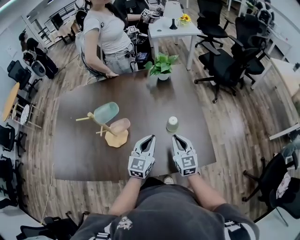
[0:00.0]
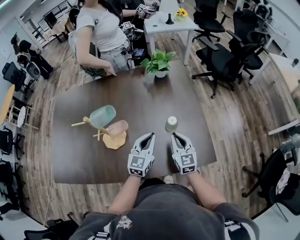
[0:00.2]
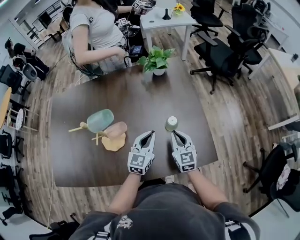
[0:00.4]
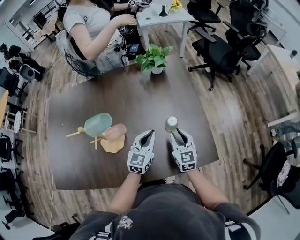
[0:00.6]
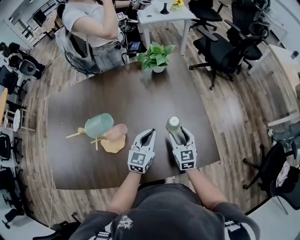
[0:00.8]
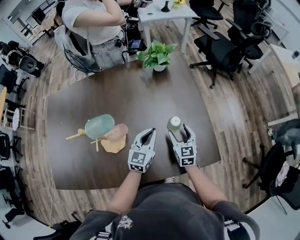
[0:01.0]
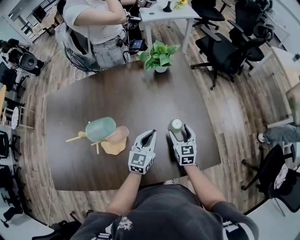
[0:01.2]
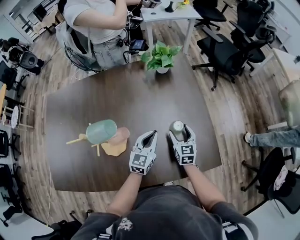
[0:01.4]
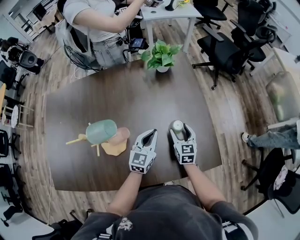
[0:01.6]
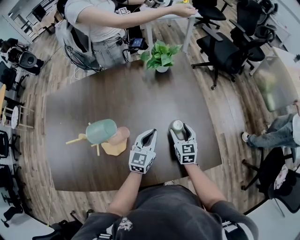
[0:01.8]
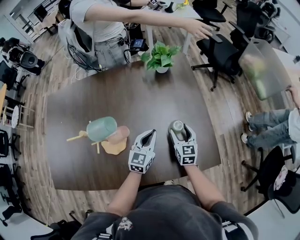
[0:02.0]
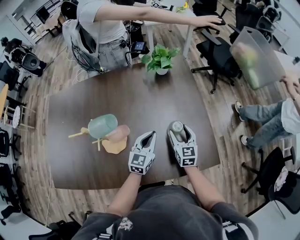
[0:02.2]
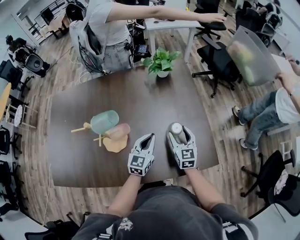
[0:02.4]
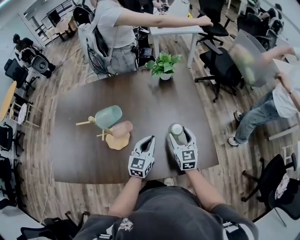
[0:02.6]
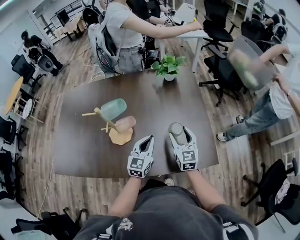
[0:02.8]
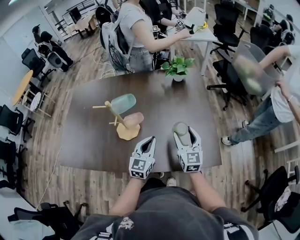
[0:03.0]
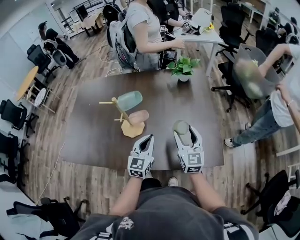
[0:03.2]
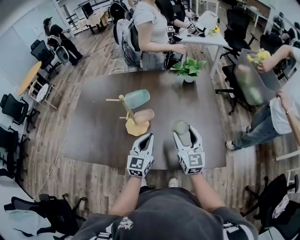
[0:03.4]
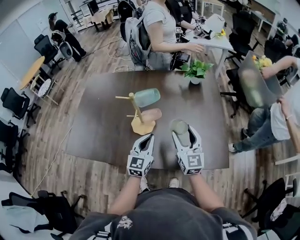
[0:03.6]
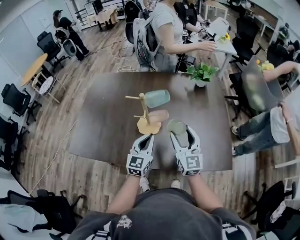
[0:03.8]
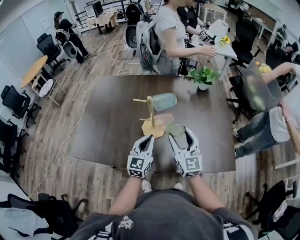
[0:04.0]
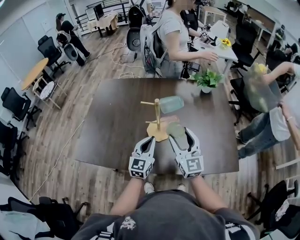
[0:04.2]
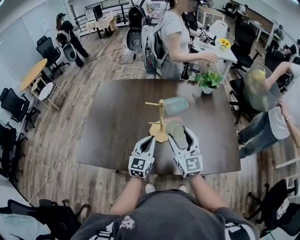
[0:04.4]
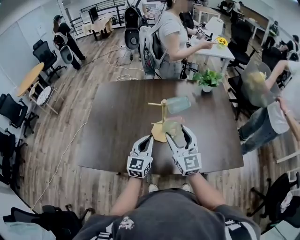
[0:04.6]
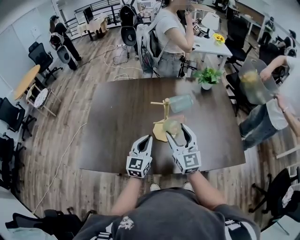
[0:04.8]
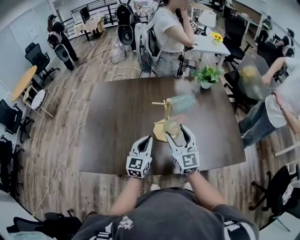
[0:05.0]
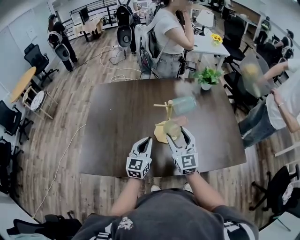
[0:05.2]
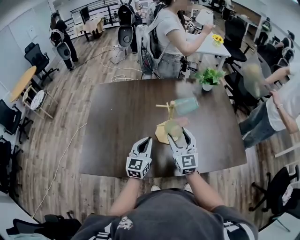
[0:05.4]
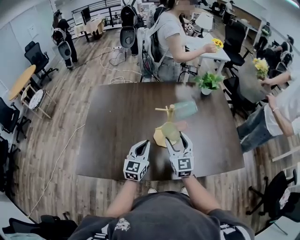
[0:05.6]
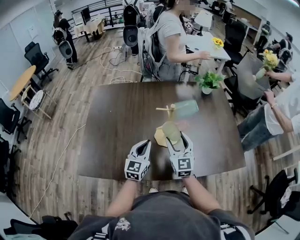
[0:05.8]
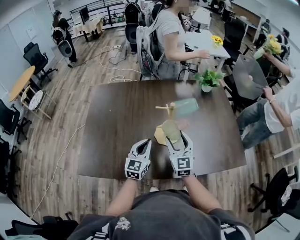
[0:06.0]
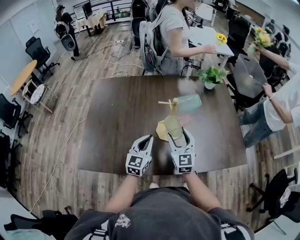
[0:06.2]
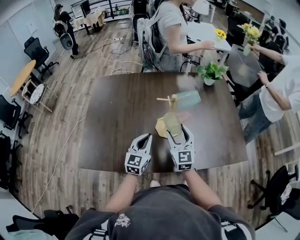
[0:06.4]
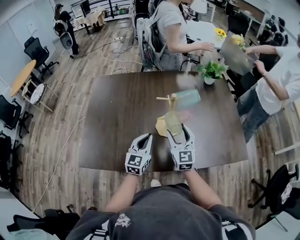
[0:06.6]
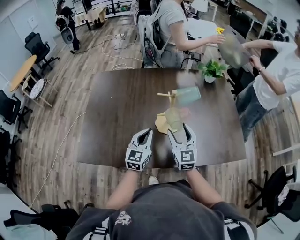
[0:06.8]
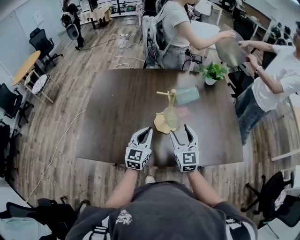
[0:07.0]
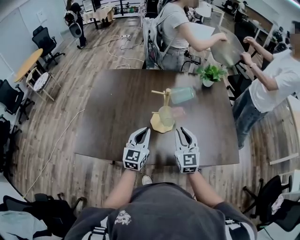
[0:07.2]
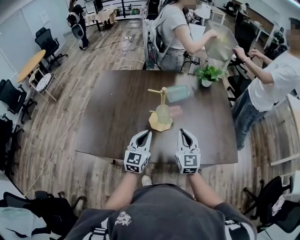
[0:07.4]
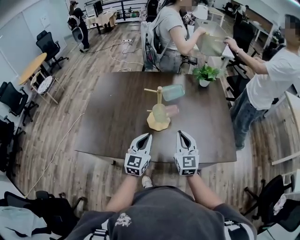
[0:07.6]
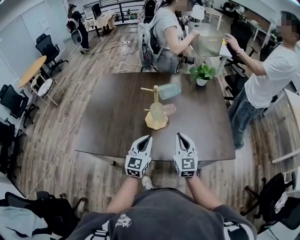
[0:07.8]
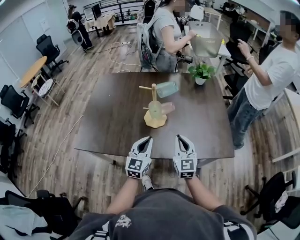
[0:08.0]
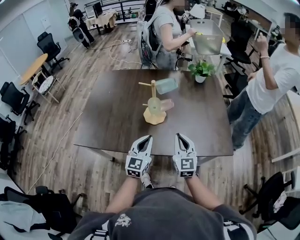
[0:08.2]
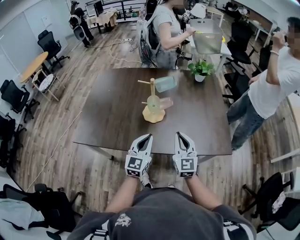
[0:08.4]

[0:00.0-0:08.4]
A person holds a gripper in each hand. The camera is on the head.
0.0 to 1.4 s: Both grippers travel together forward and downward, approximately 15 cm. The right gripper opens.
1.4 to 2.8 s: The left gripper shifts approximately 10 cm backward. Meanwhile the right gripper goes roughly 15 cm upward and backward.
2.8 to 4.2 s: The right gripper moves to the left and upward, some 30 cm, and changes its angle by about 20 degrees. Meanwhile the left gripper travels to the left by approximately 25 cm.
4.2 to 5.6 s: The left gripper travels to the left by roughly 10 cm, while the right gripper shifts roughly 10 cm to the left and downward.
5.6 to 7.0 s: The right gripper moves about 5 cm.
7.0 to 8.4 s: The grippers both shift backward and to the right by approximately 15 cm. The right gripper closes its fingers.

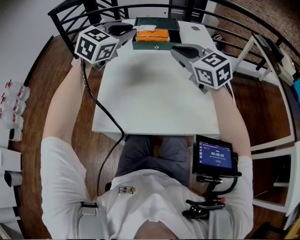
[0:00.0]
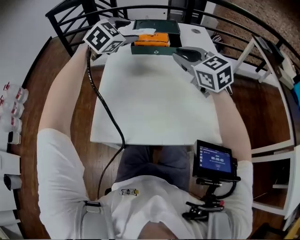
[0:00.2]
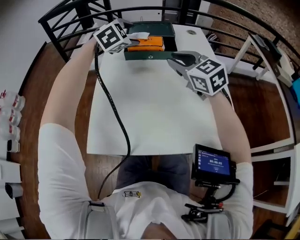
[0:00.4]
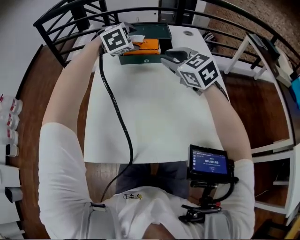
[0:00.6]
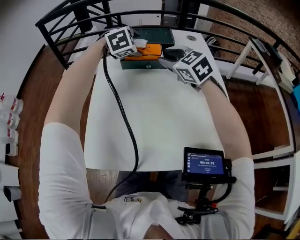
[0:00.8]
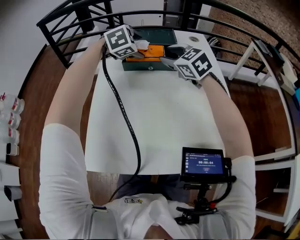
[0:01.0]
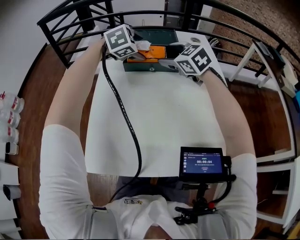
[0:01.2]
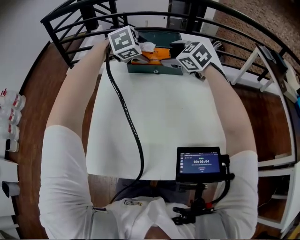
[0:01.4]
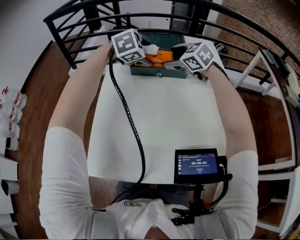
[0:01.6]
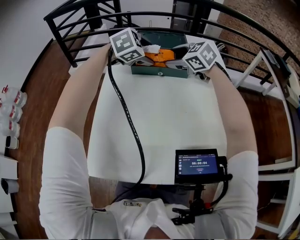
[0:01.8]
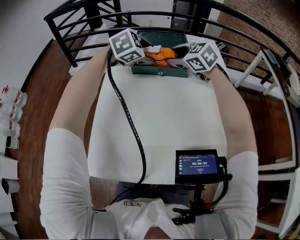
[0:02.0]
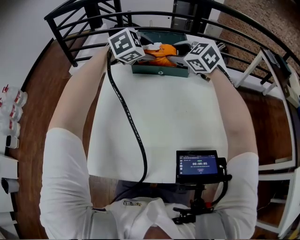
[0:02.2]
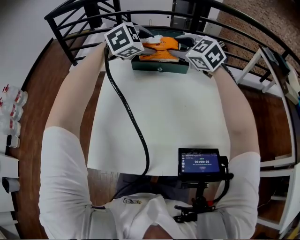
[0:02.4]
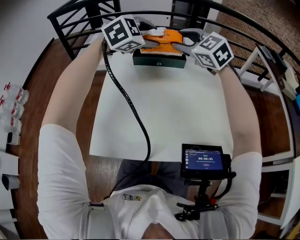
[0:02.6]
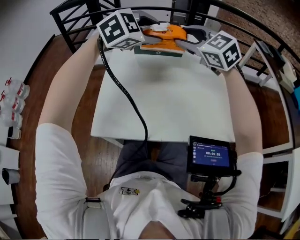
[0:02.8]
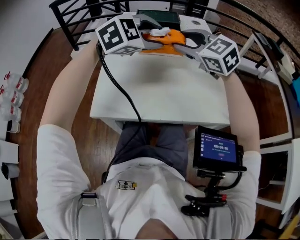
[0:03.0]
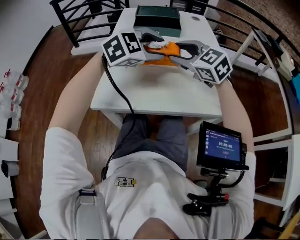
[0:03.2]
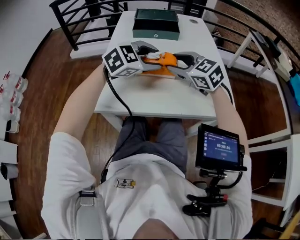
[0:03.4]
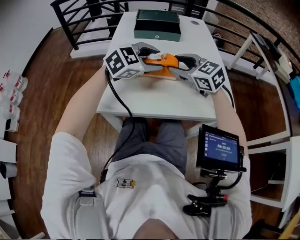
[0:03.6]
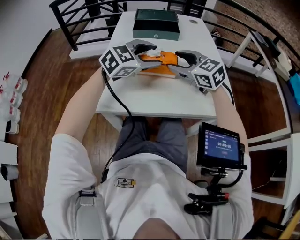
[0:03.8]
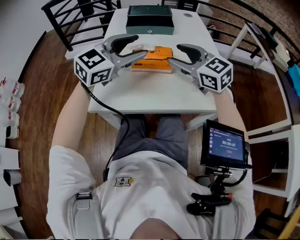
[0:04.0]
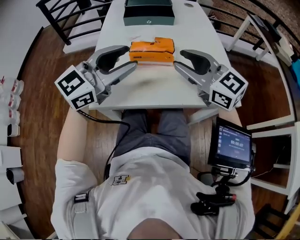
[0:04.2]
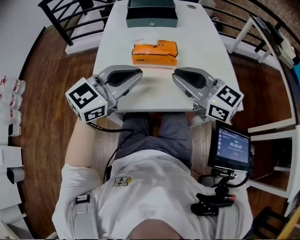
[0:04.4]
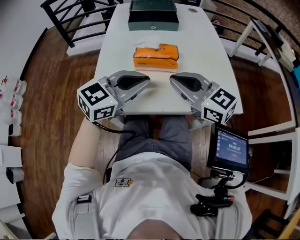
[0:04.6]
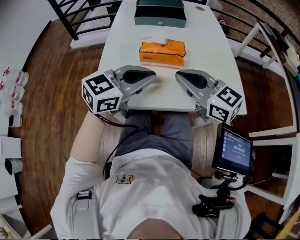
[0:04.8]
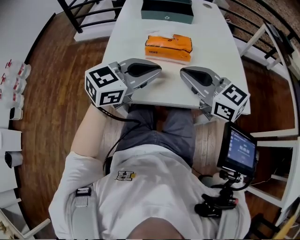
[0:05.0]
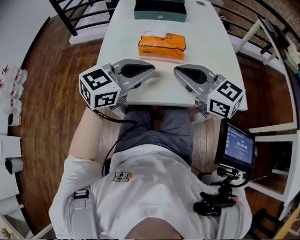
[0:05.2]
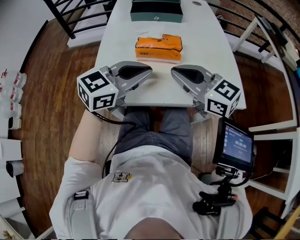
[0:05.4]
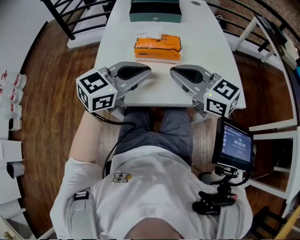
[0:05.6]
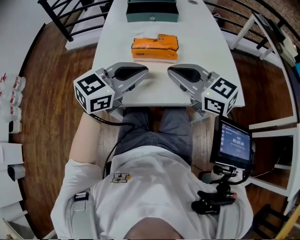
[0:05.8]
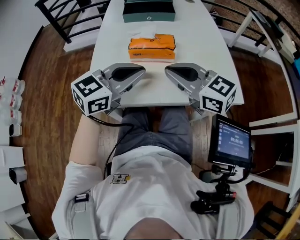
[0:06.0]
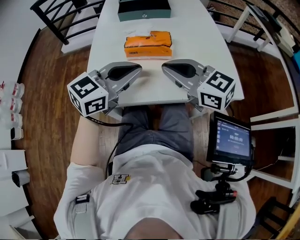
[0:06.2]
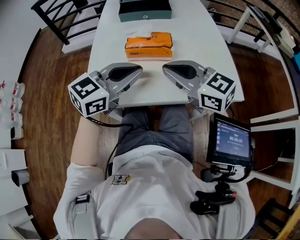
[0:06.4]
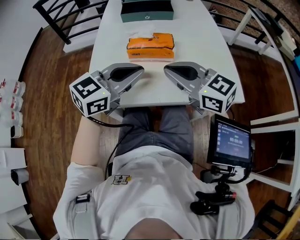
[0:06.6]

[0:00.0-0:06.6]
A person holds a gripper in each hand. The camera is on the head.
0.0 to 1.6 s: Both grippers travel together forward and downward, approximately 20 cm. The left gripper tips its fingers downward by roughly 40 degrees, and opens. Meanwhile the right gripper turns by approximately 20 degrees, and opens its fingers.
1.6 to 3.2 s: The two grippers go roughly 30 cm backward. The left gripper closes its fingers. The right gripper closes.
3.2 to 5.0 s: Both grippers move backward, approximately 10 cm. The left gripper turns by some 40 degrees, and closes up; the right gripper changes its angle by approximately 30 degrees, and closes up.
5.0 to 6.6 s: Neither gripper changes place.

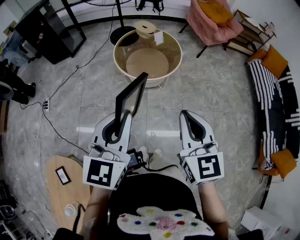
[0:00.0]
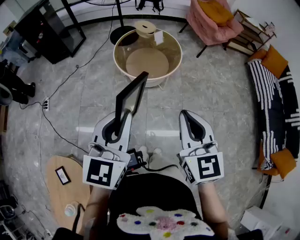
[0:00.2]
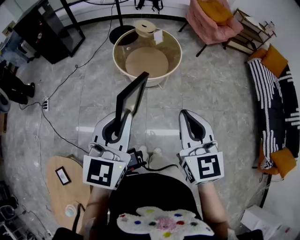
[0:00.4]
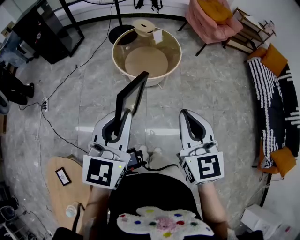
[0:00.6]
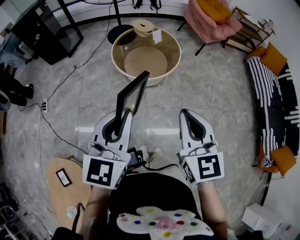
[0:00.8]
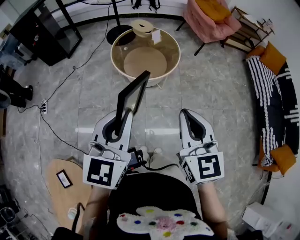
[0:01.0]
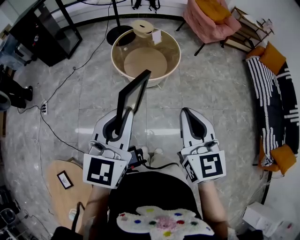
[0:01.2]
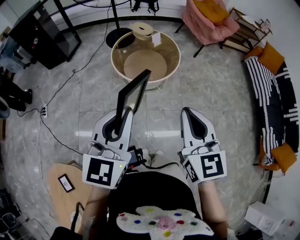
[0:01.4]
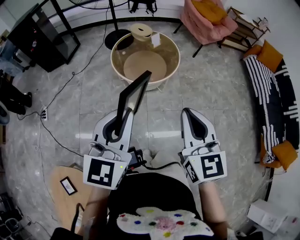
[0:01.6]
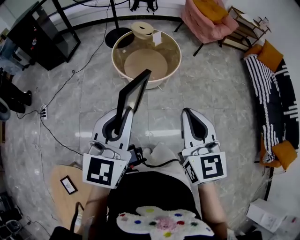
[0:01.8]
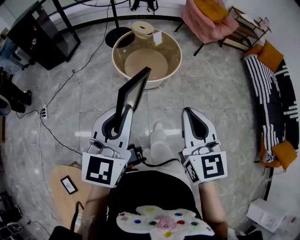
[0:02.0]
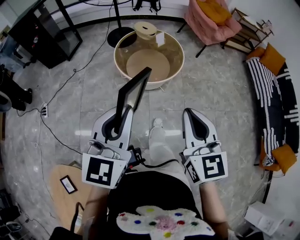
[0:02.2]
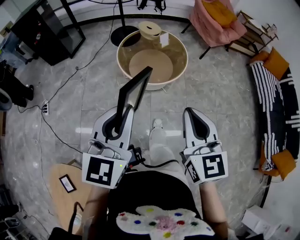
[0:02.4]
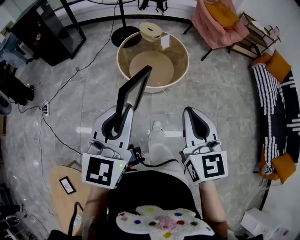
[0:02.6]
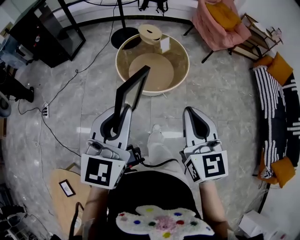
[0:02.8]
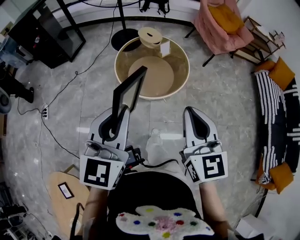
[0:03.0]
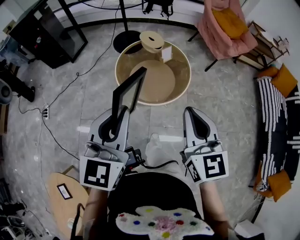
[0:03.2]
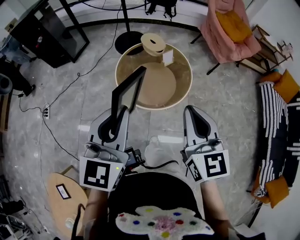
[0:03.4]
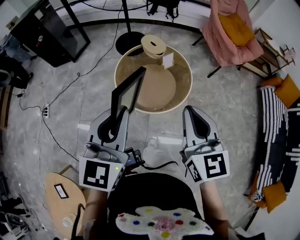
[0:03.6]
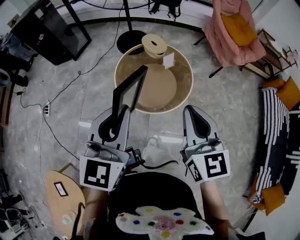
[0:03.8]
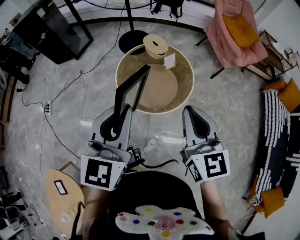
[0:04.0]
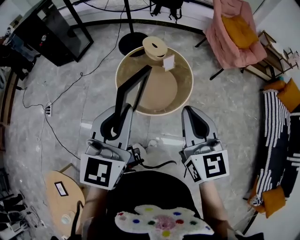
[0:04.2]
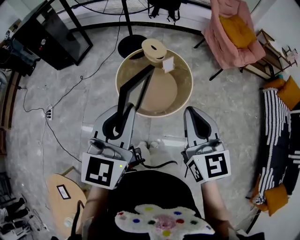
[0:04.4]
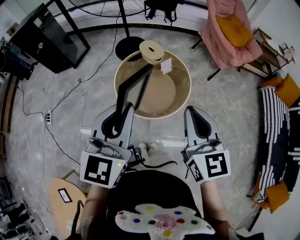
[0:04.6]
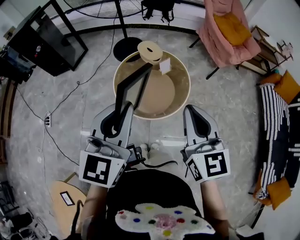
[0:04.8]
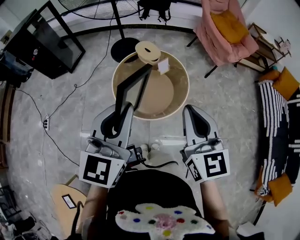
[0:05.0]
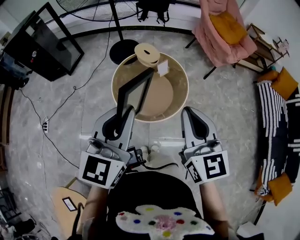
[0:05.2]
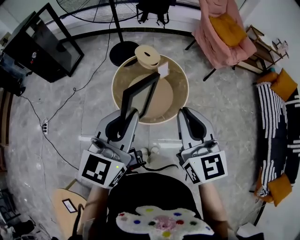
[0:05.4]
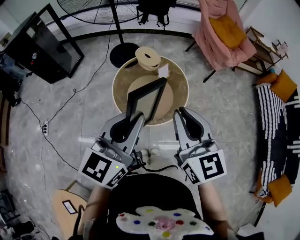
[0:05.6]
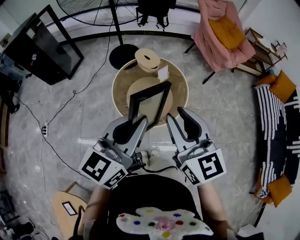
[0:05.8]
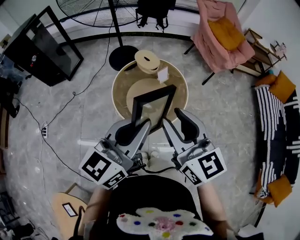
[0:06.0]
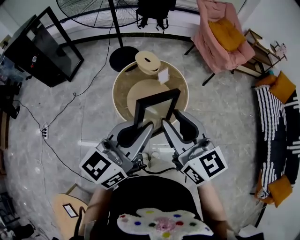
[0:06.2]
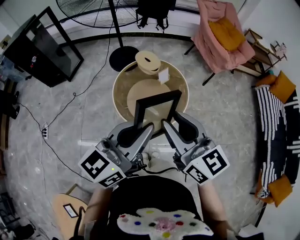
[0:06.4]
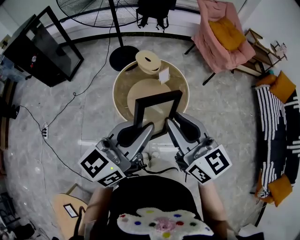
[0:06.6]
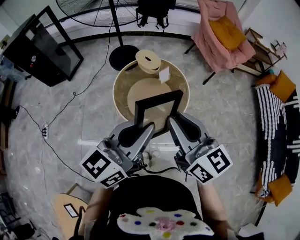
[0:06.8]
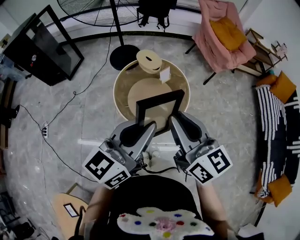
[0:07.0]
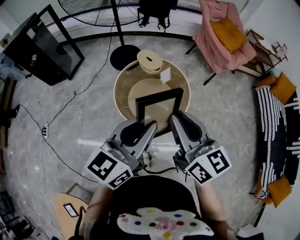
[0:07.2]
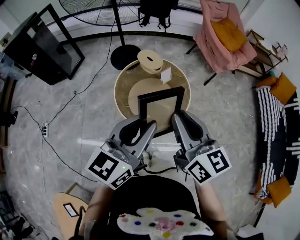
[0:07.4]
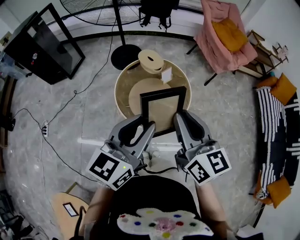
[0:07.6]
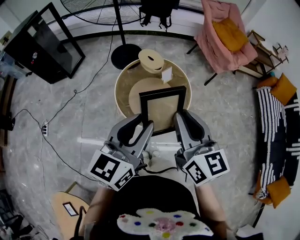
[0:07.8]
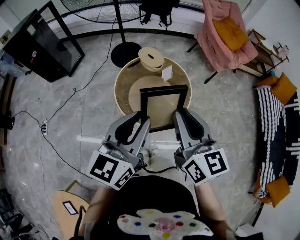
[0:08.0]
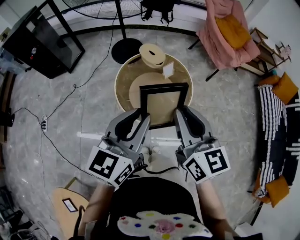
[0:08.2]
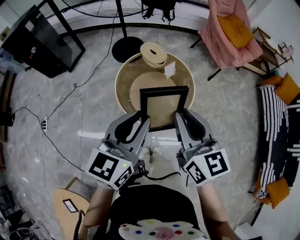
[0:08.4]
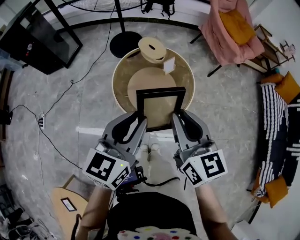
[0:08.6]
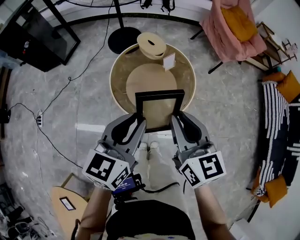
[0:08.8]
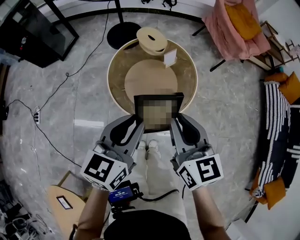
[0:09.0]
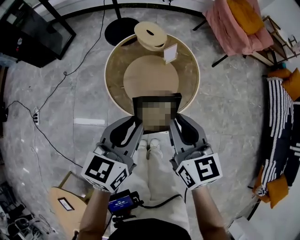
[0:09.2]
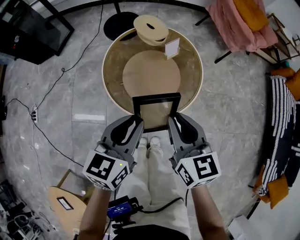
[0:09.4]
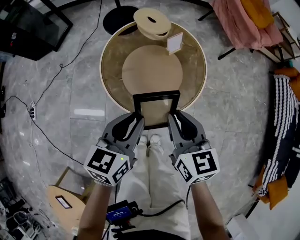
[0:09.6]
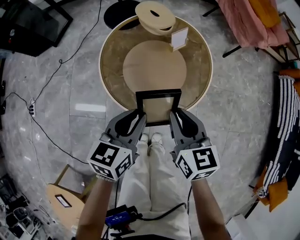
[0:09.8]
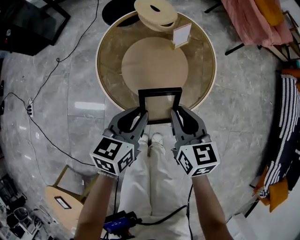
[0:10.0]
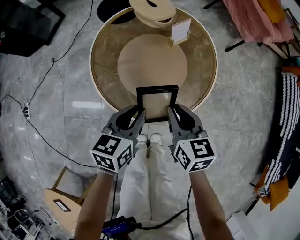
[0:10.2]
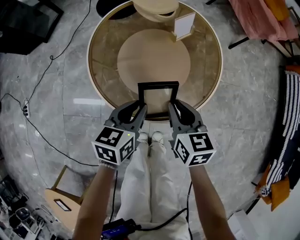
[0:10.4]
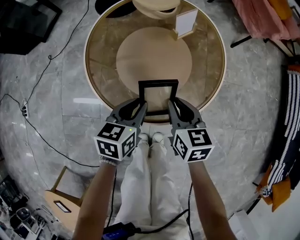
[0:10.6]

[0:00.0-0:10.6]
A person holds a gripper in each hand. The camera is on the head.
0.0 to 1.6 s: The grippers stay close to where they were, moving slightly.
1.6 to 3.0 s: Both grippers move forward, approximately 15 cm.
3.0 to 4.6 s: The grippers both shift forward by approximately 15 cm.
4.6 to 6.0 s: The right gripper heads to the left, covering roughly 5 cm, and opens up. The left gripper turns by about 30 degrees.
6.0 to 7.6 s: The grippers move only a little.
7.6 to 9.0 s: Both grippers move downward, approximately 10 cm.
9.0 to 10.6 s: The two grippers go approximately 35 cm downward. The left gripper turns by approximately 20 degrees, while the right gripper rotates approximately 20 degrees.
